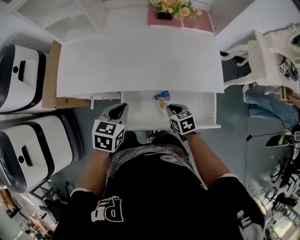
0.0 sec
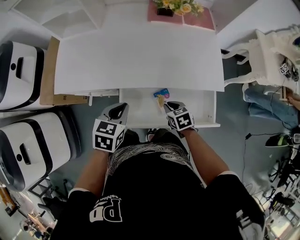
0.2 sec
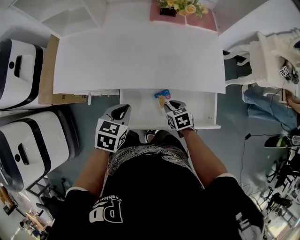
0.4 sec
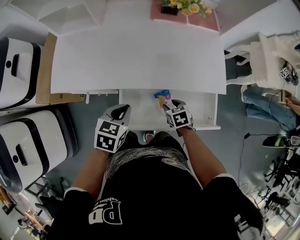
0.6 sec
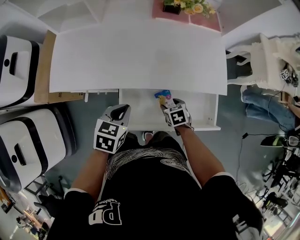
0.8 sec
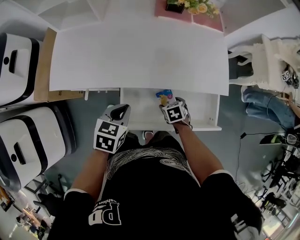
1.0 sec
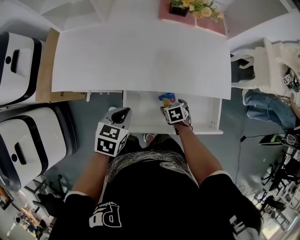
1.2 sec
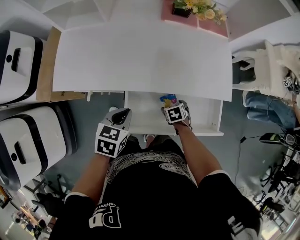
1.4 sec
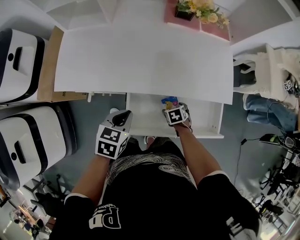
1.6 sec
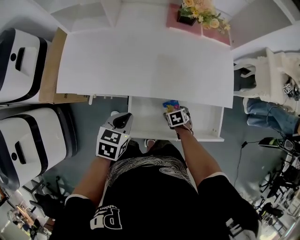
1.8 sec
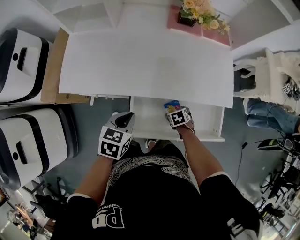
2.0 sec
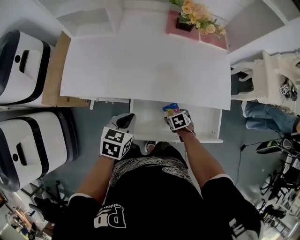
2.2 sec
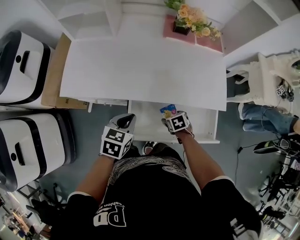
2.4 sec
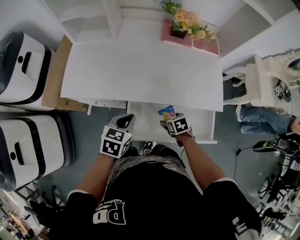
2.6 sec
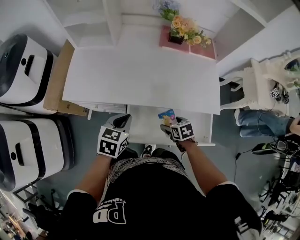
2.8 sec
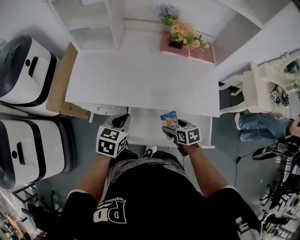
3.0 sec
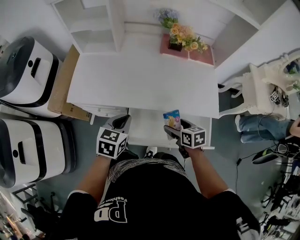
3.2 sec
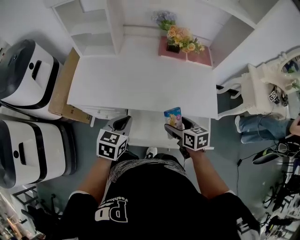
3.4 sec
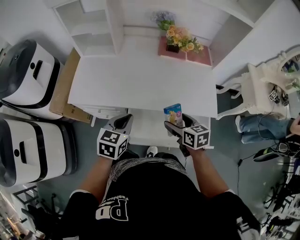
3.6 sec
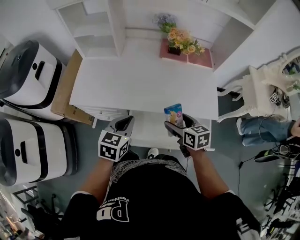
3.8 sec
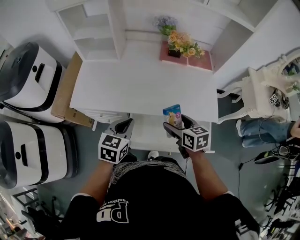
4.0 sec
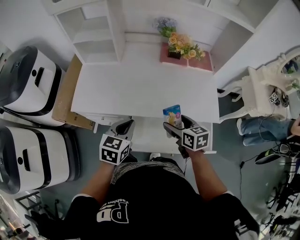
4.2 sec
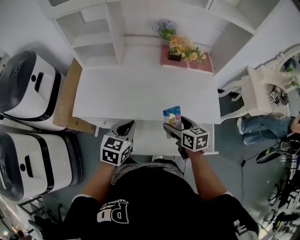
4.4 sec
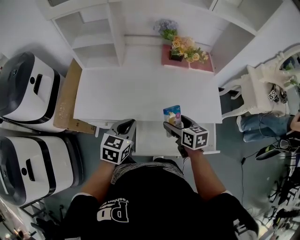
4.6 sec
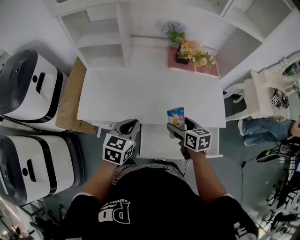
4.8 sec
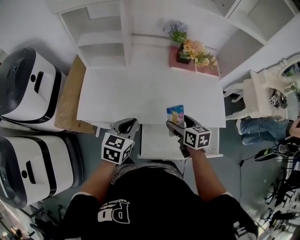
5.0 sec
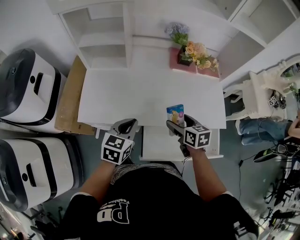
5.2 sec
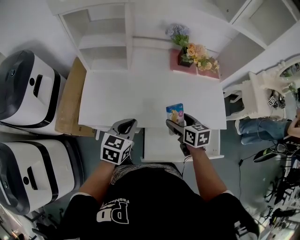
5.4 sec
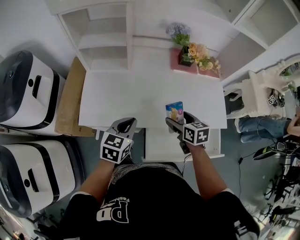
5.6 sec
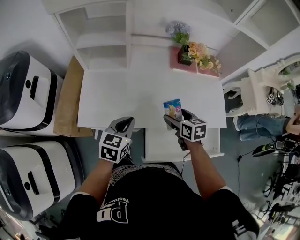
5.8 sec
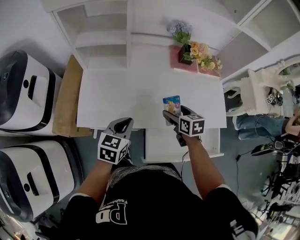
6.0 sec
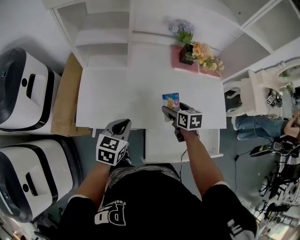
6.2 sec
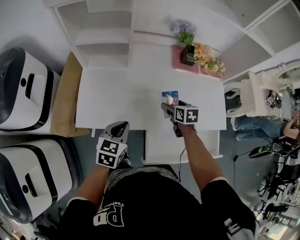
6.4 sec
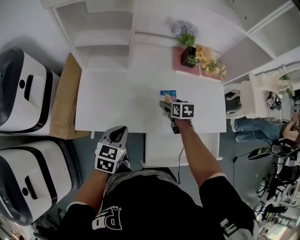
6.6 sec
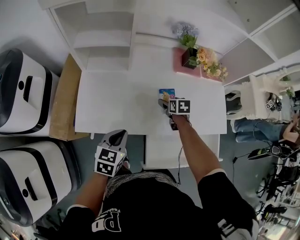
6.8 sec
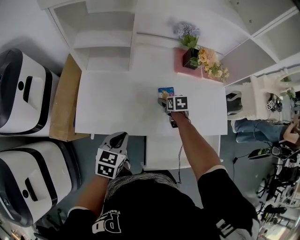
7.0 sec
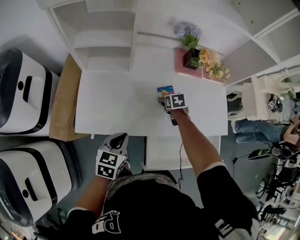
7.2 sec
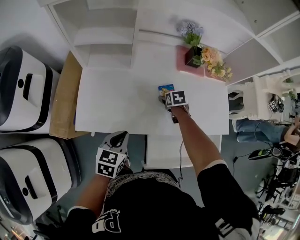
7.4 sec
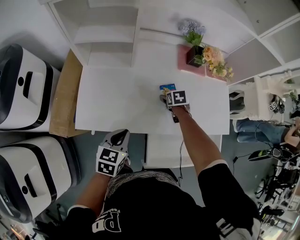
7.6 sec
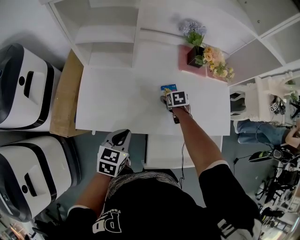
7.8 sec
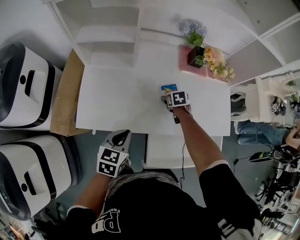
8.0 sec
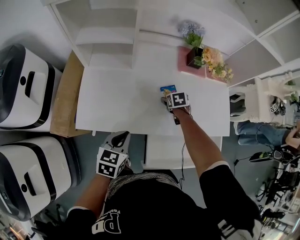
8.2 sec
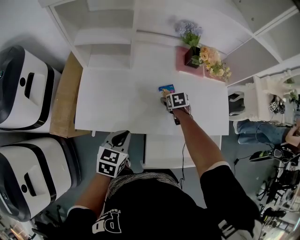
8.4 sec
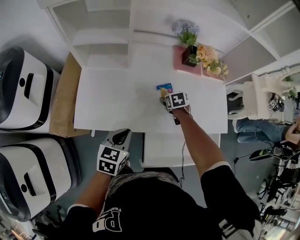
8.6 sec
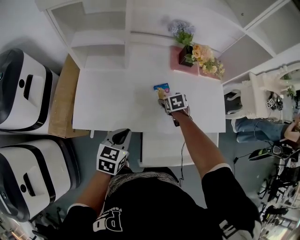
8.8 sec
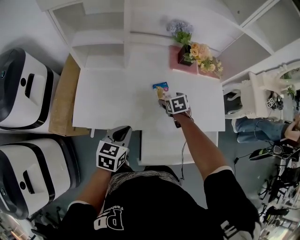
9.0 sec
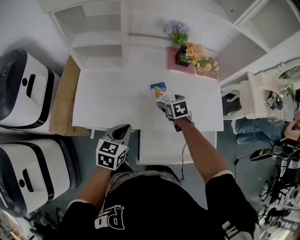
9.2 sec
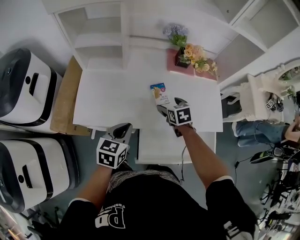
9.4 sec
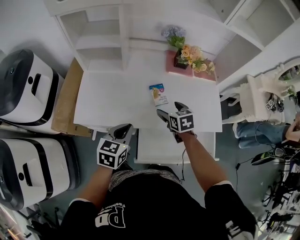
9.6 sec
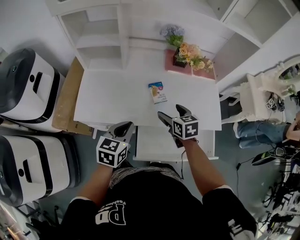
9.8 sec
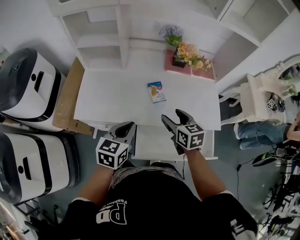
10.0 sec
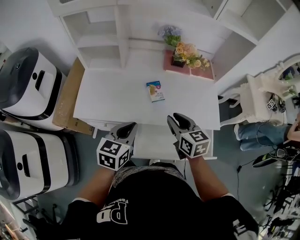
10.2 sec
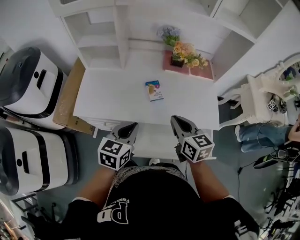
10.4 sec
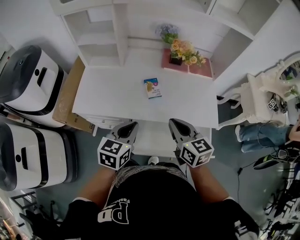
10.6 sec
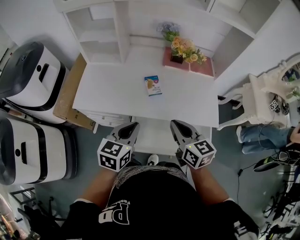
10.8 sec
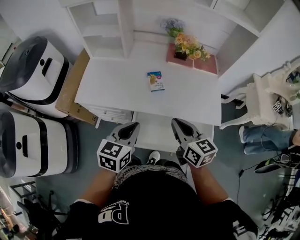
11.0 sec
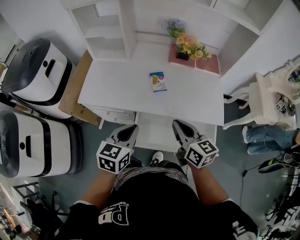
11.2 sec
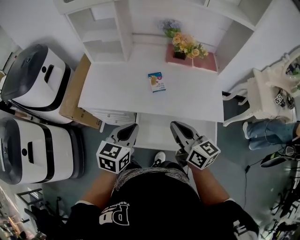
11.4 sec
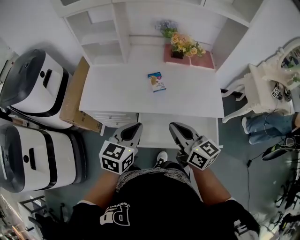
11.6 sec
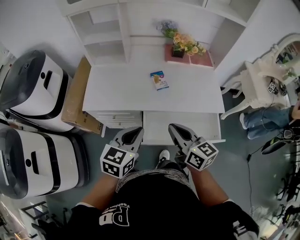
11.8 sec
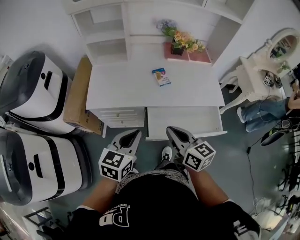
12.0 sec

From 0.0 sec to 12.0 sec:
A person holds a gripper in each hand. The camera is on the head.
From 0.0 sec to 1.6 sec: The right gripper shifts roughly 15 cm downward, changes its angle by some 20 degrees, and opens up, while the left gripper is displaced downward by about 5 cm.
From 1.6 sec to 3.0 sec: The left gripper travels upward by some 5 cm; the right gripper travels upward by approximately 15 cm, and turns by roughly 30 degrees.
From 3.0 sec to 4.4 sec: The right gripper shifts roughly 15 cm upward and forward.
From 4.4 sec to 6.0 sec: The right gripper goes roughly 15 cm forward and to the left; the left gripper shifts about 15 cm to the left and forward.
From 6.0 sec to 7.6 sec: The right gripper goes some 20 cm downward and forward, and rotates about 20 degrees. The left gripper changes place by some 5 cm.
From 7.6 sec to 9.0 sec: The left gripper changes place by roughly 5 cm; the right gripper heads upward, covering approximately 5 cm.
From 9.0 sec to 10.4 sec: The right gripper goes approximately 30 cm upward and backward, tilts its fingers some 40 degrees upward, and closes its fingers. The left gripper travels to the right, upward and backward by roughly 15 cm.
From 10.4 sec to 12.0 sec: The two grippers go some 20 cm backward and to the left.

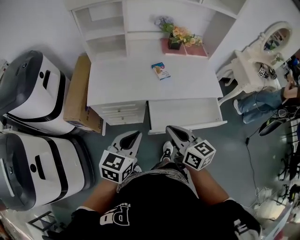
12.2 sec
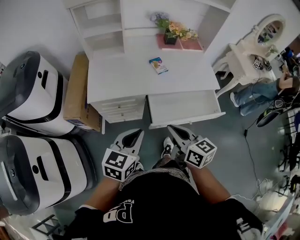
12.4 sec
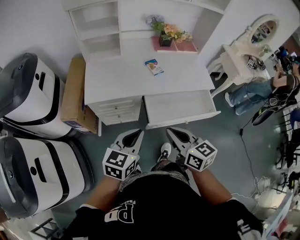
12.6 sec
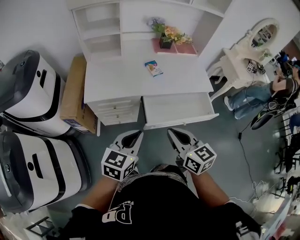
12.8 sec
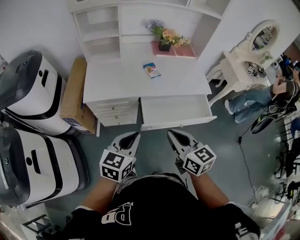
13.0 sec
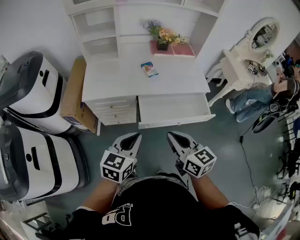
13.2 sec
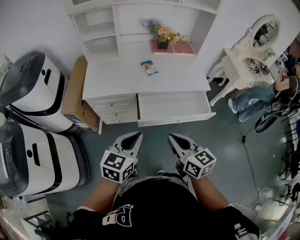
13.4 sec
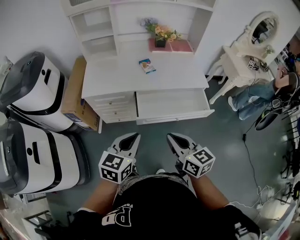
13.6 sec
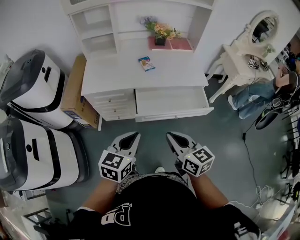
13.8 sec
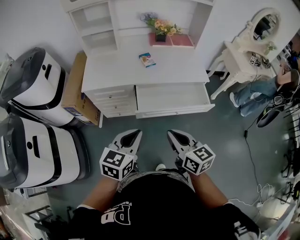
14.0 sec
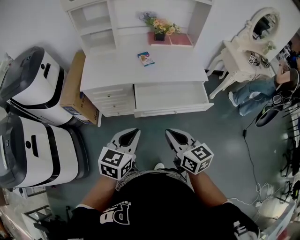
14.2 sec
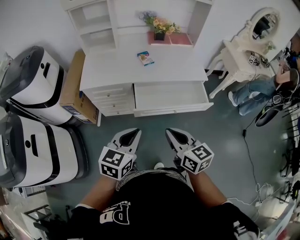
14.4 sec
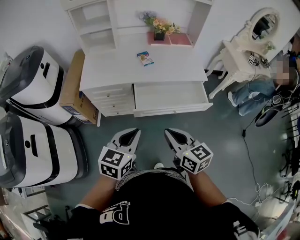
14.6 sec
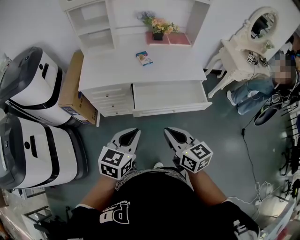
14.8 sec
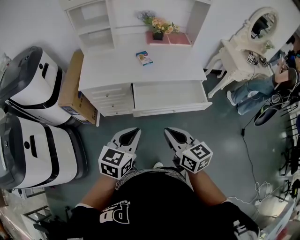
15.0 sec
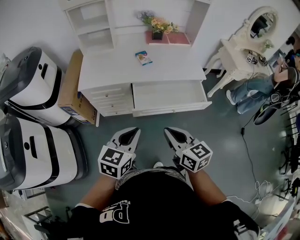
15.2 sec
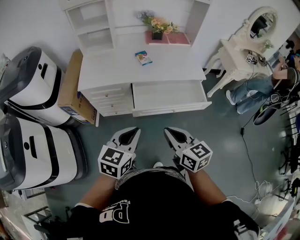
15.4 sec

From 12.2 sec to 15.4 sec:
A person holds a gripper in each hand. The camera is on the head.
From 12.2 sec to 13.8 sec: The two grippers go roughly 15 cm backward and to the right.
From 13.8 sec to 15.4 sec: There are only small adjustments of the grippers.

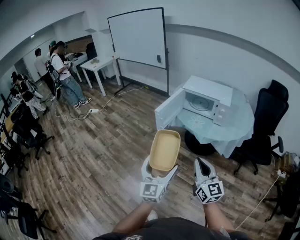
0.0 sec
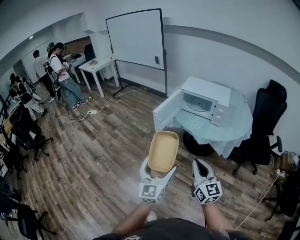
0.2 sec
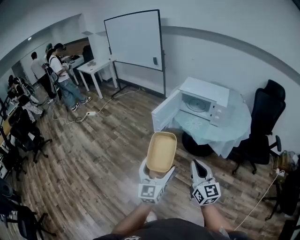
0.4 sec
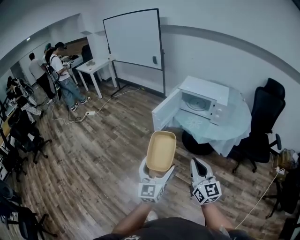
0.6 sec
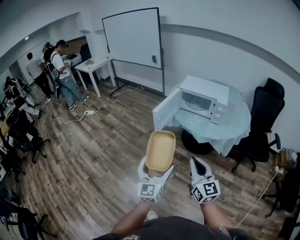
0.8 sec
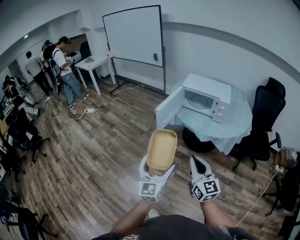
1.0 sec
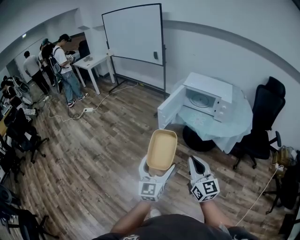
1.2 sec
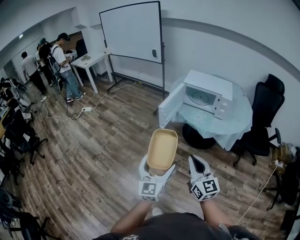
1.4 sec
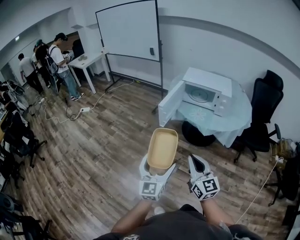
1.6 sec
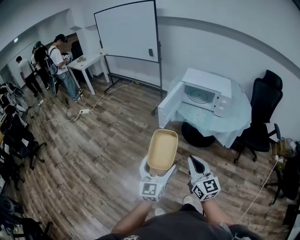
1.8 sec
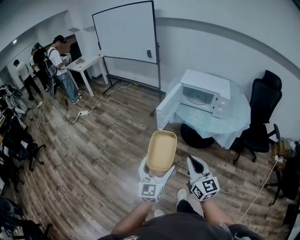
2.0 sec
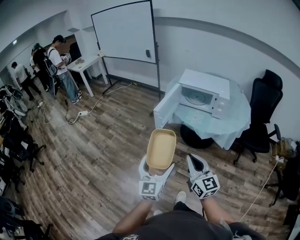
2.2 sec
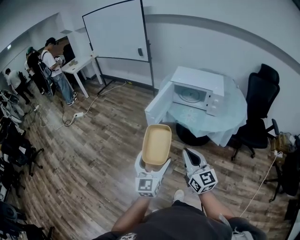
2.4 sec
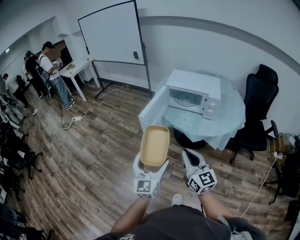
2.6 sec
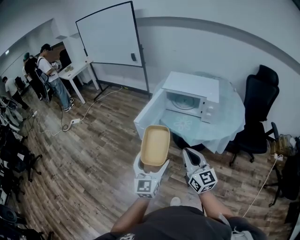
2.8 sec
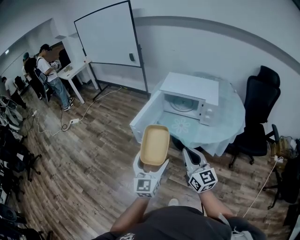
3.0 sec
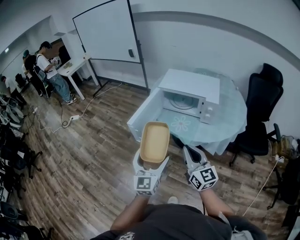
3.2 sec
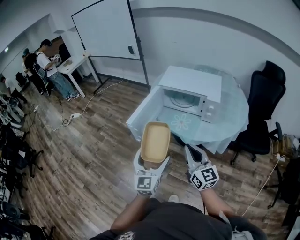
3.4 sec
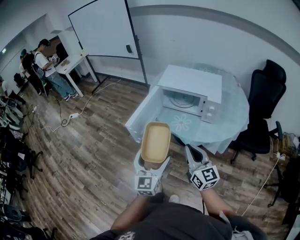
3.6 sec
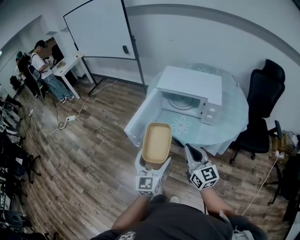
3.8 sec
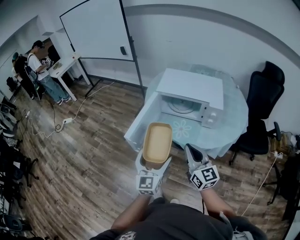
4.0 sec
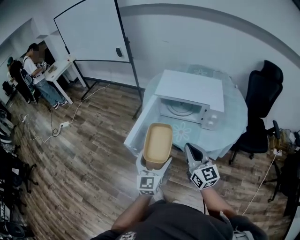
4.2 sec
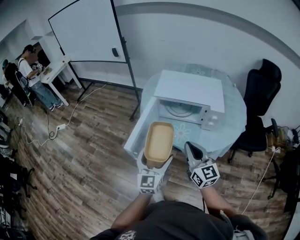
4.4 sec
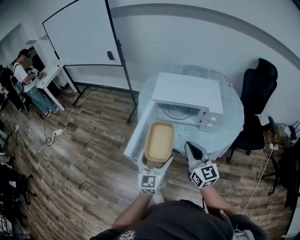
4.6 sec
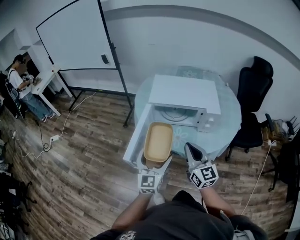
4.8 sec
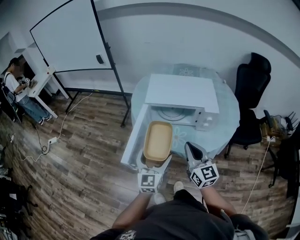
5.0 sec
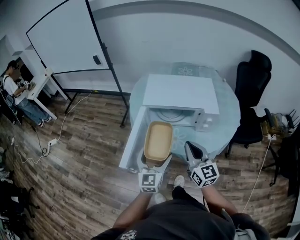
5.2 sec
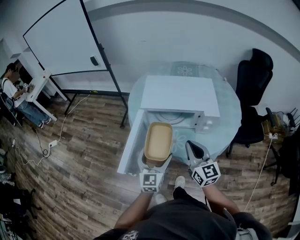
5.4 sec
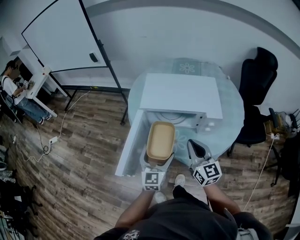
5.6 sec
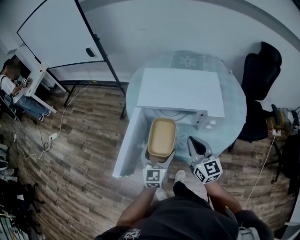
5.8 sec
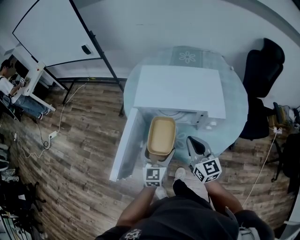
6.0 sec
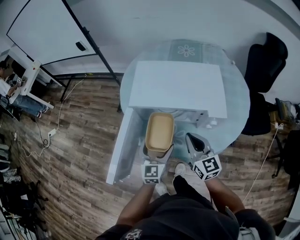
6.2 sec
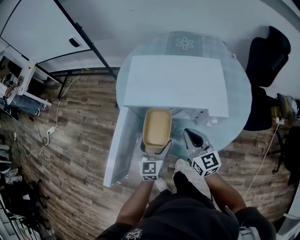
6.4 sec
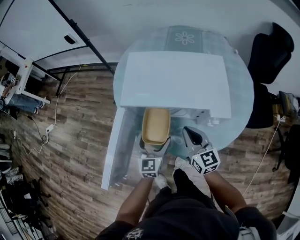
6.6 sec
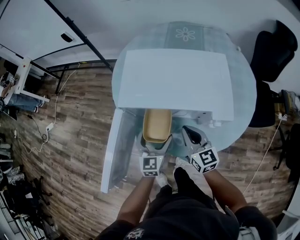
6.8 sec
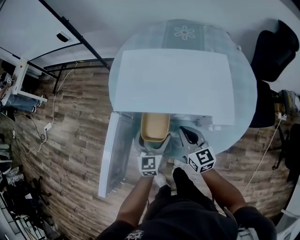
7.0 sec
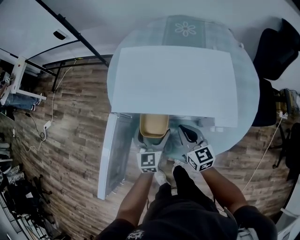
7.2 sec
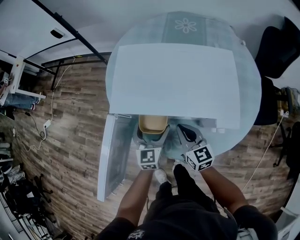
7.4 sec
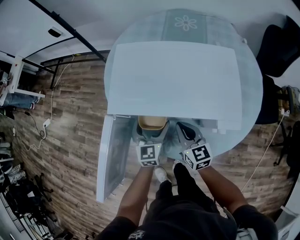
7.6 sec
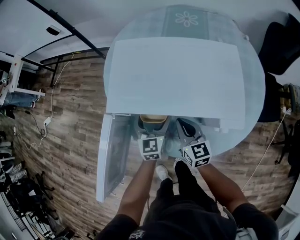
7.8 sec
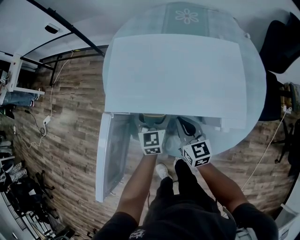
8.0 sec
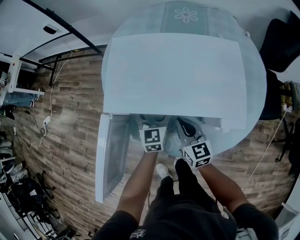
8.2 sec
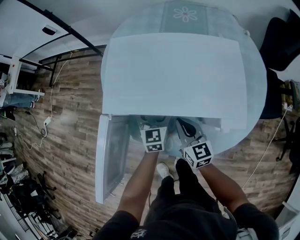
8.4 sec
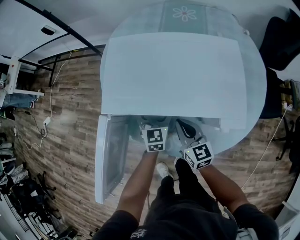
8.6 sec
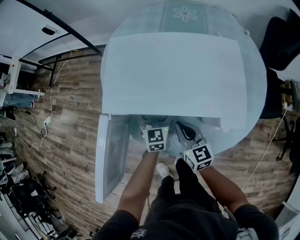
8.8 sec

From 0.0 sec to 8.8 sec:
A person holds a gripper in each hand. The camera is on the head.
From 0.0 sec to 1.4 sec: Both grippers travel together to the left, about 10 cm.
From 1.4 sec to 3.0 sec: The grippers both shift forward and to the right by approximately 20 cm.
From 3.0 sec to 4.4 sec: The two grippers go approximately 20 cm forward.
From 4.4 sec to 5.8 sec: The left gripper is displaced forward, downward and to the right by some 20 cm. The right gripper travels forward and to the right by about 15 cm.
From 5.8 sec to 7.4 sec: The left gripper is displaced forward and downward by about 20 cm; the right gripper travels downward and forward by approximately 20 cm.
From 7.4 sec to 8.8 sec: The left gripper travels forward by some 5 cm.
